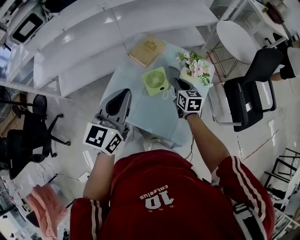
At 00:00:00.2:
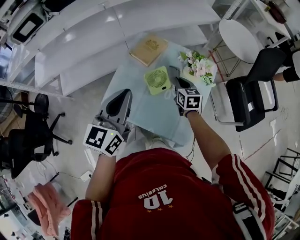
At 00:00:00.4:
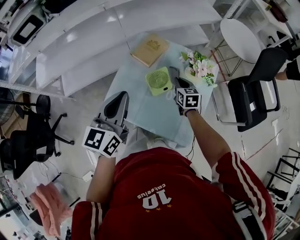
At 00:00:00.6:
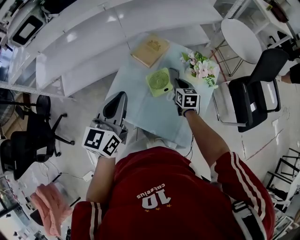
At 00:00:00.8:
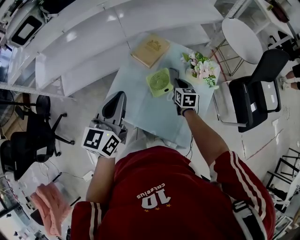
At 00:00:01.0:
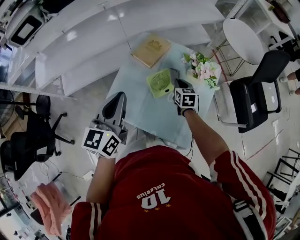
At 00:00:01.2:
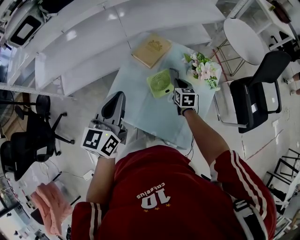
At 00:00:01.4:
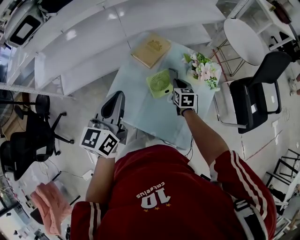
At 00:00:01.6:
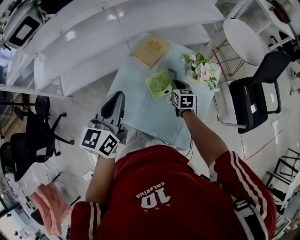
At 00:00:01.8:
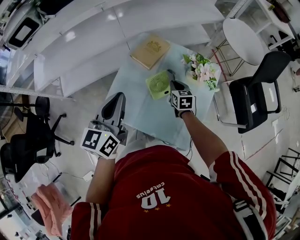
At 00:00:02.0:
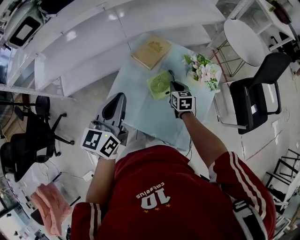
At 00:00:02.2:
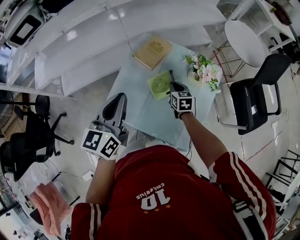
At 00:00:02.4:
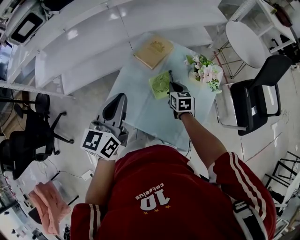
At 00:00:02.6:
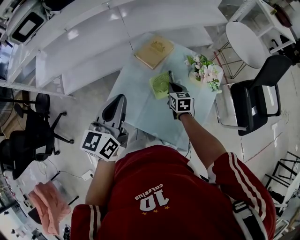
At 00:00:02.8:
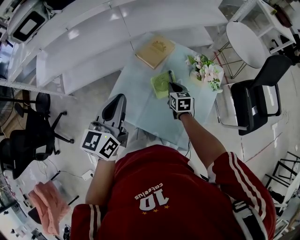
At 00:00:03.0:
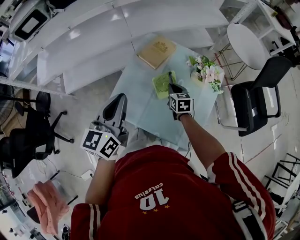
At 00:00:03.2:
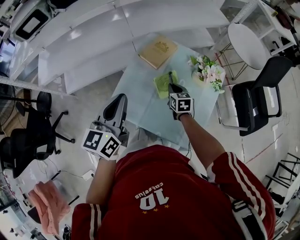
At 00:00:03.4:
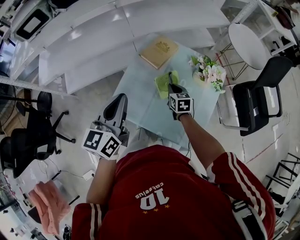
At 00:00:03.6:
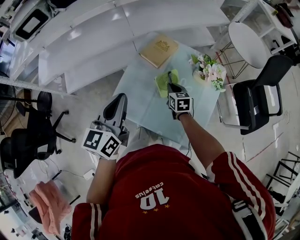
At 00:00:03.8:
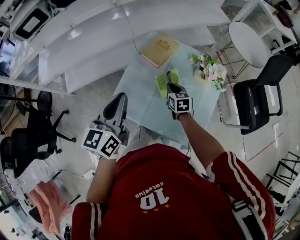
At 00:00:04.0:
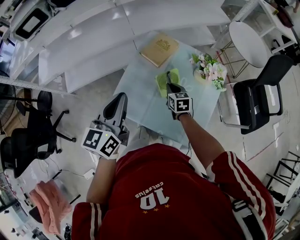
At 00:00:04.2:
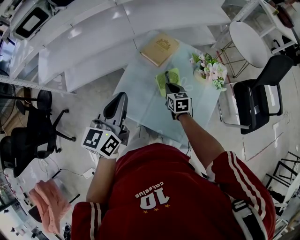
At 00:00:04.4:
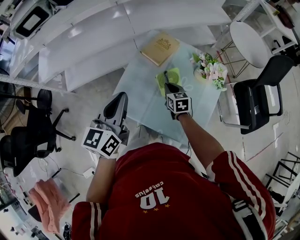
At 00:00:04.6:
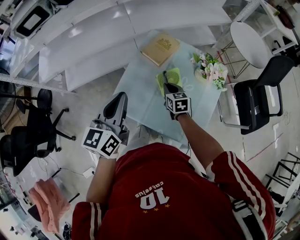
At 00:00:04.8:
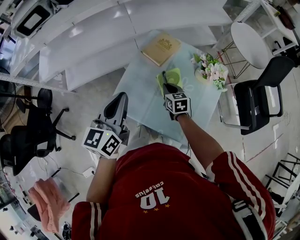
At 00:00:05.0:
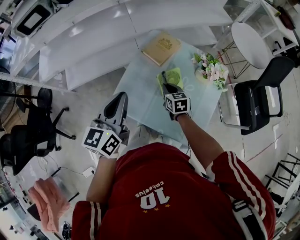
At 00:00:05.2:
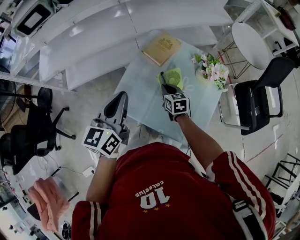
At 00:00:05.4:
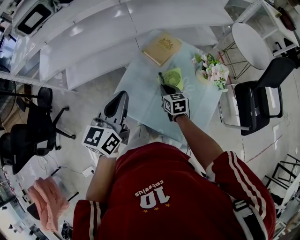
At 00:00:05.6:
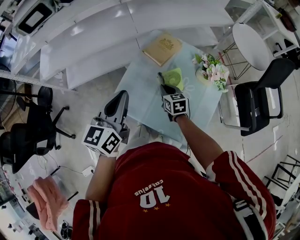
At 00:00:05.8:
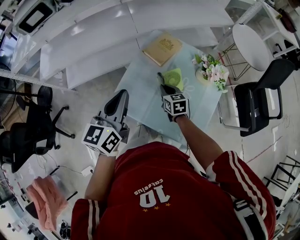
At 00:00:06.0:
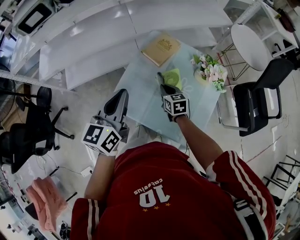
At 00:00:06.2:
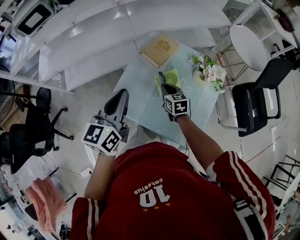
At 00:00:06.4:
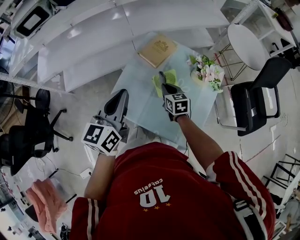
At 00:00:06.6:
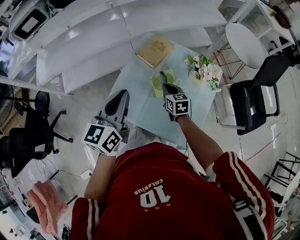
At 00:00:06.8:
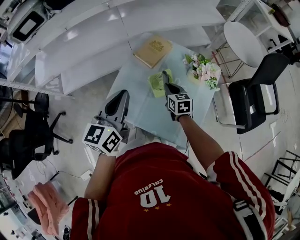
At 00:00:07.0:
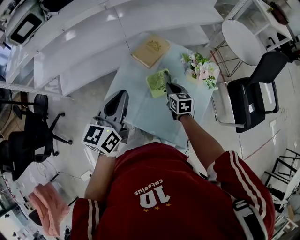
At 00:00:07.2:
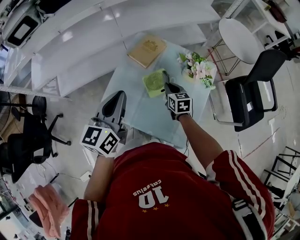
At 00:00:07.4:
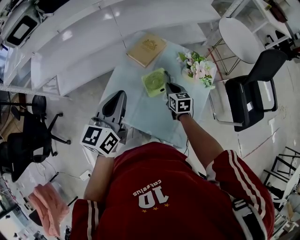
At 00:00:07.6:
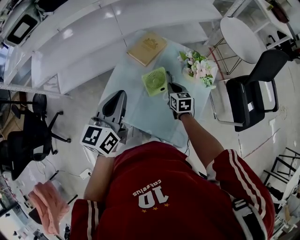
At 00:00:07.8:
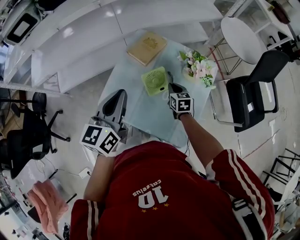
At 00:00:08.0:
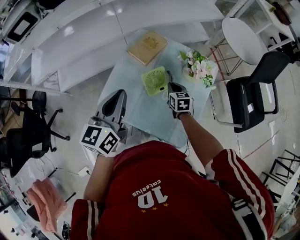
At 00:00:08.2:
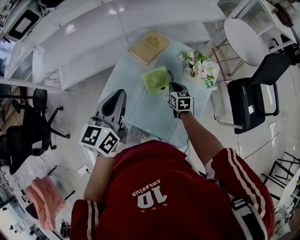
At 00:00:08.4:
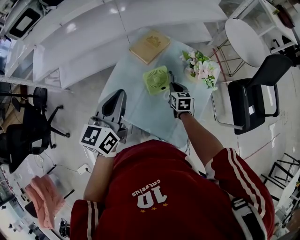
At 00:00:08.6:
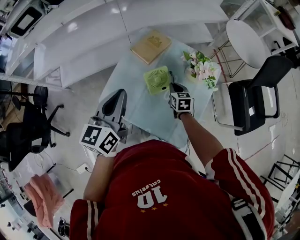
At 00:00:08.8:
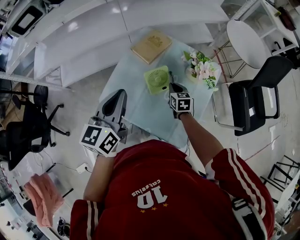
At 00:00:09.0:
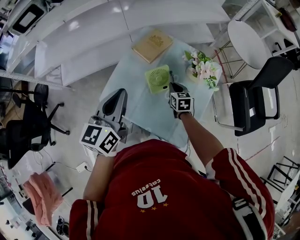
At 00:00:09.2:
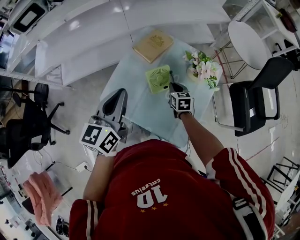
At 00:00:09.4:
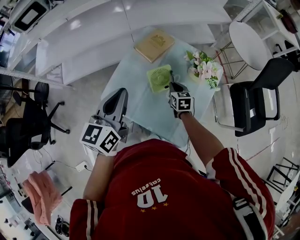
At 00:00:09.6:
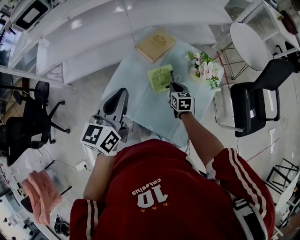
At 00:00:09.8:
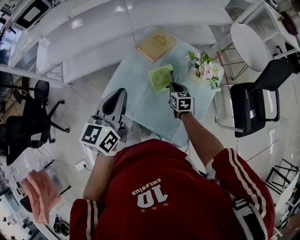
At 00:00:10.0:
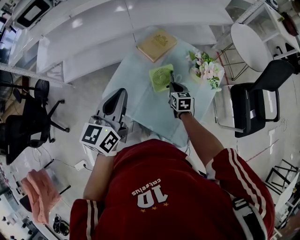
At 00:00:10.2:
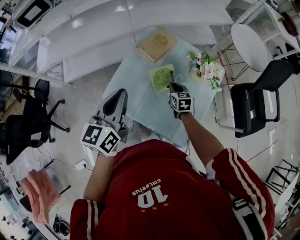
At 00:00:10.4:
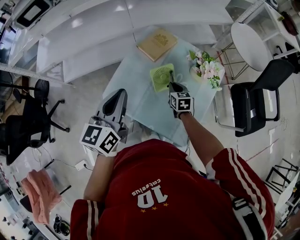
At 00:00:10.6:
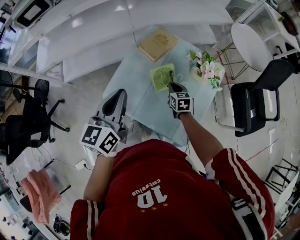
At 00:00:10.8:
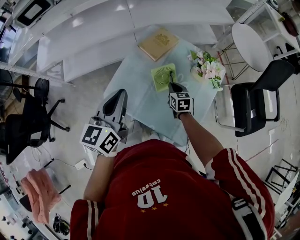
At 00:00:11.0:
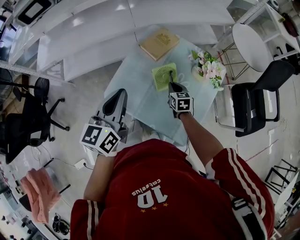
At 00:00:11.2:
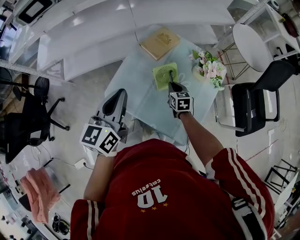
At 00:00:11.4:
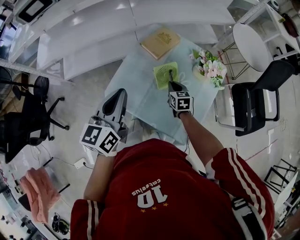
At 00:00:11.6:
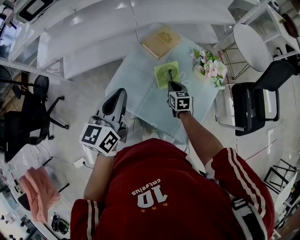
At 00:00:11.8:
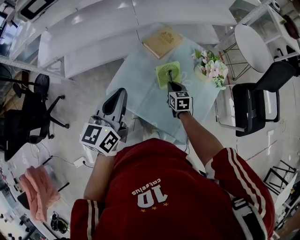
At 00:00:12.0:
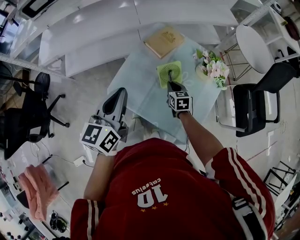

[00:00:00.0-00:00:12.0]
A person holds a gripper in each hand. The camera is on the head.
00:00:00.0 to 00:00:01.6: The left gripper ends up approximately 5 cm from where it was; the right gripper shifts some 10 cm downward.
00:00:01.6 to 00:00:03.0: The right gripper shifts some 5 cm to the left.
00:00:03.0 to 00:00:04.4: The grippers stay close to where they were, moving slightly.
00:00:04.4 to 00:00:06.0: The grippers move only a little.
00:00:06.0 to 00:00:07.6: The left gripper shifts some 5 cm to the right; the right gripper moves to the right, roughly 10 cm.
00:00:07.6 to 00:00:10.4: The grippers make only small movements.
00:00:10.4 to 00:00:12.0: The grippers move only a little.

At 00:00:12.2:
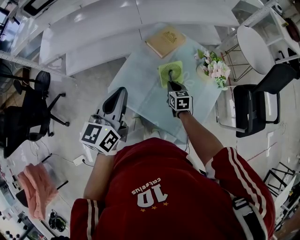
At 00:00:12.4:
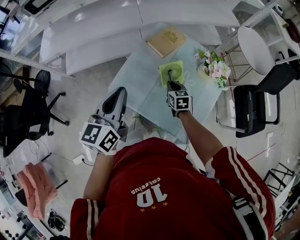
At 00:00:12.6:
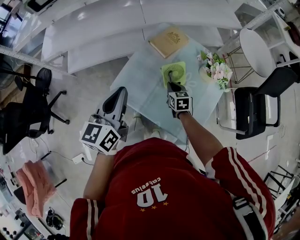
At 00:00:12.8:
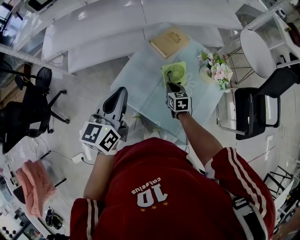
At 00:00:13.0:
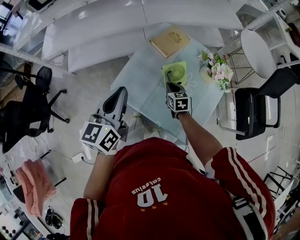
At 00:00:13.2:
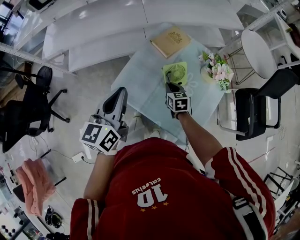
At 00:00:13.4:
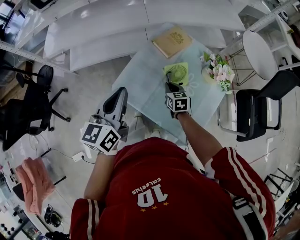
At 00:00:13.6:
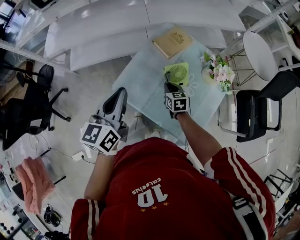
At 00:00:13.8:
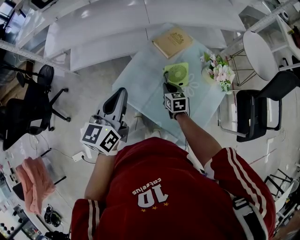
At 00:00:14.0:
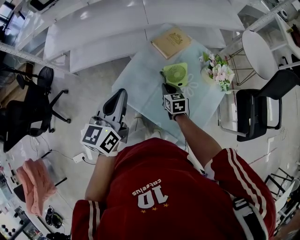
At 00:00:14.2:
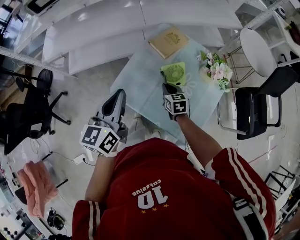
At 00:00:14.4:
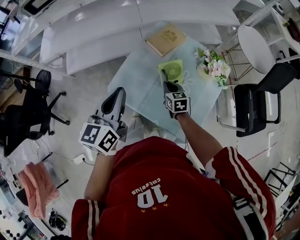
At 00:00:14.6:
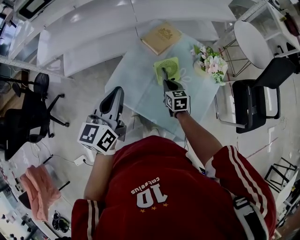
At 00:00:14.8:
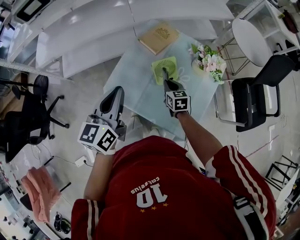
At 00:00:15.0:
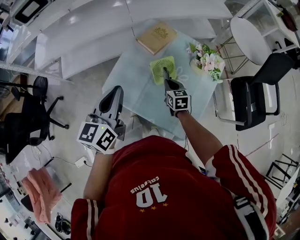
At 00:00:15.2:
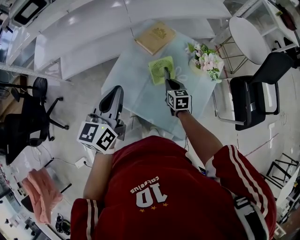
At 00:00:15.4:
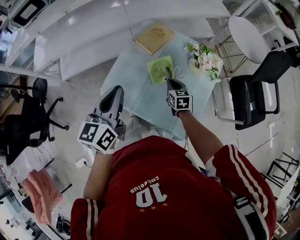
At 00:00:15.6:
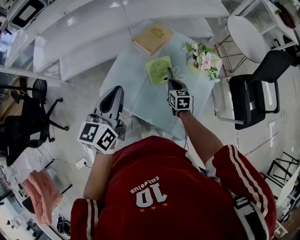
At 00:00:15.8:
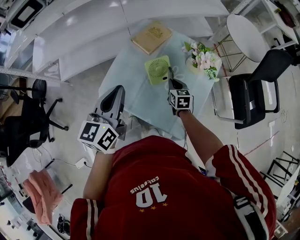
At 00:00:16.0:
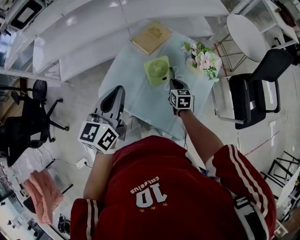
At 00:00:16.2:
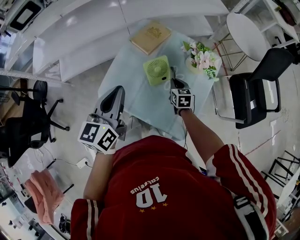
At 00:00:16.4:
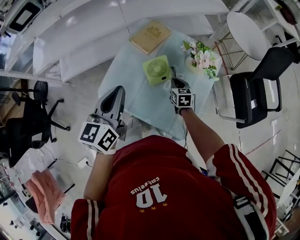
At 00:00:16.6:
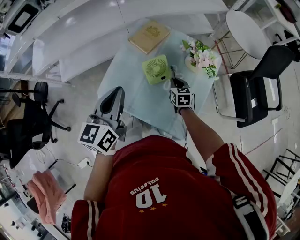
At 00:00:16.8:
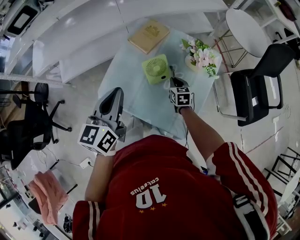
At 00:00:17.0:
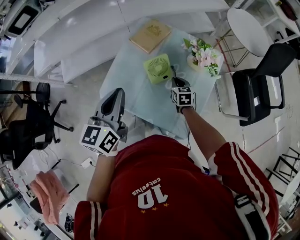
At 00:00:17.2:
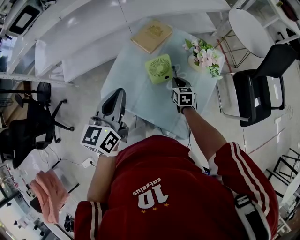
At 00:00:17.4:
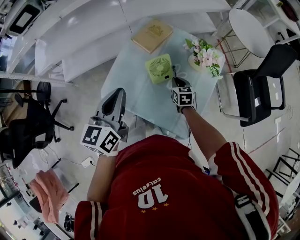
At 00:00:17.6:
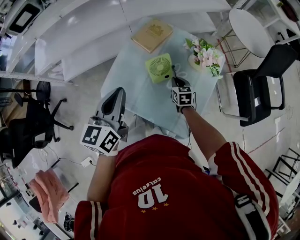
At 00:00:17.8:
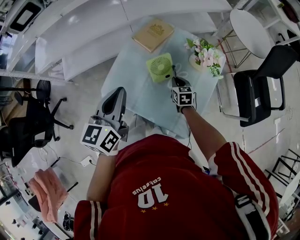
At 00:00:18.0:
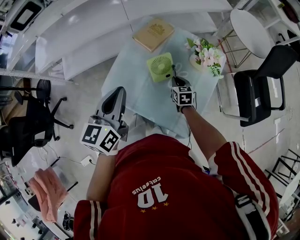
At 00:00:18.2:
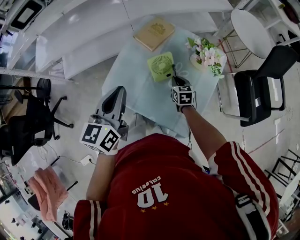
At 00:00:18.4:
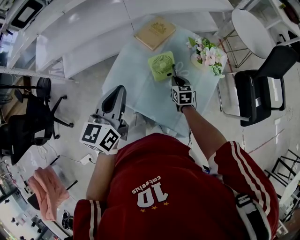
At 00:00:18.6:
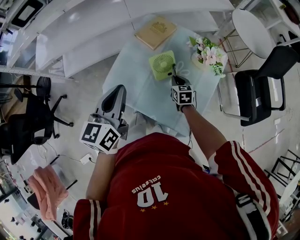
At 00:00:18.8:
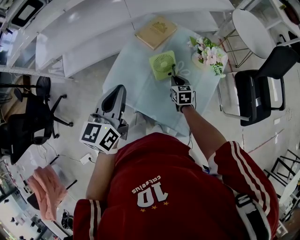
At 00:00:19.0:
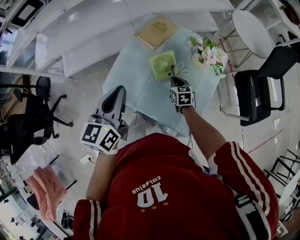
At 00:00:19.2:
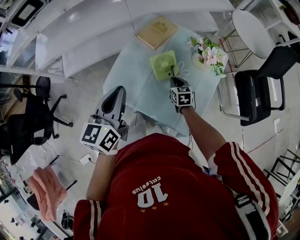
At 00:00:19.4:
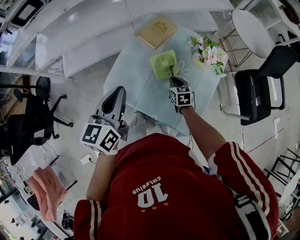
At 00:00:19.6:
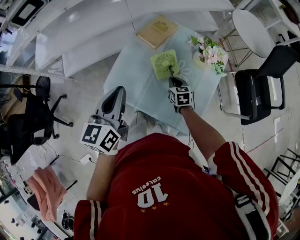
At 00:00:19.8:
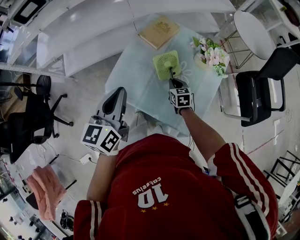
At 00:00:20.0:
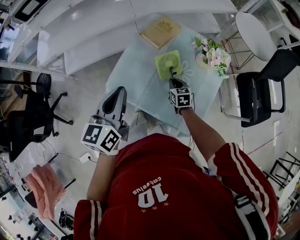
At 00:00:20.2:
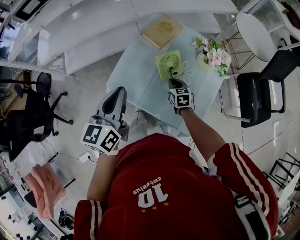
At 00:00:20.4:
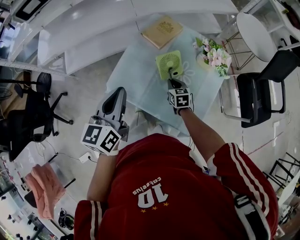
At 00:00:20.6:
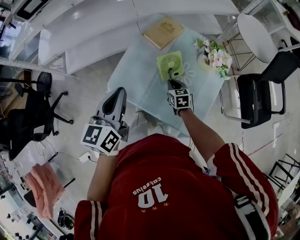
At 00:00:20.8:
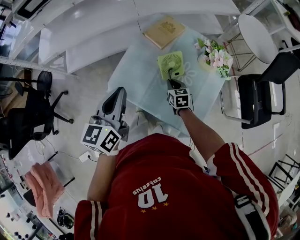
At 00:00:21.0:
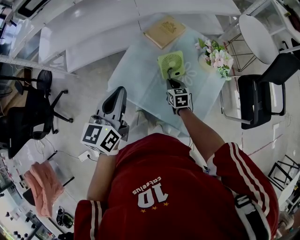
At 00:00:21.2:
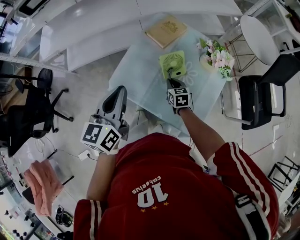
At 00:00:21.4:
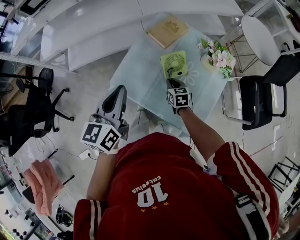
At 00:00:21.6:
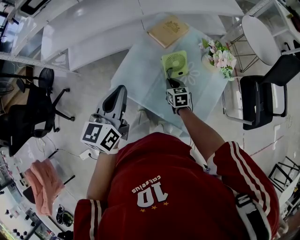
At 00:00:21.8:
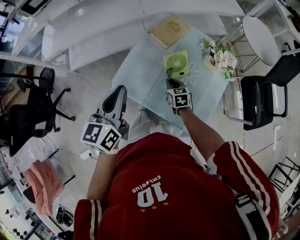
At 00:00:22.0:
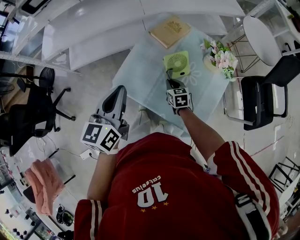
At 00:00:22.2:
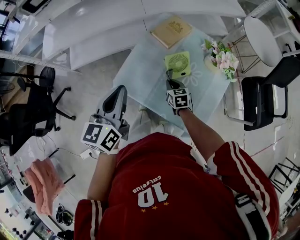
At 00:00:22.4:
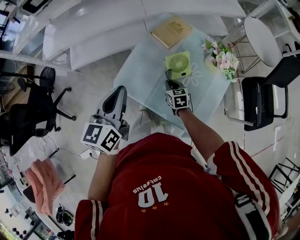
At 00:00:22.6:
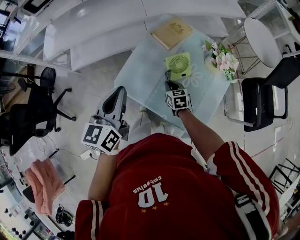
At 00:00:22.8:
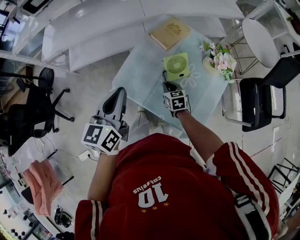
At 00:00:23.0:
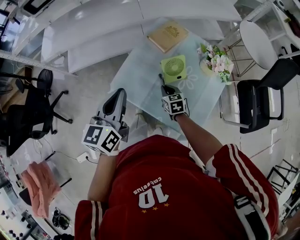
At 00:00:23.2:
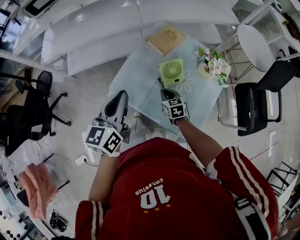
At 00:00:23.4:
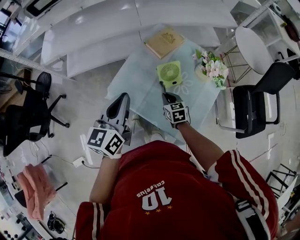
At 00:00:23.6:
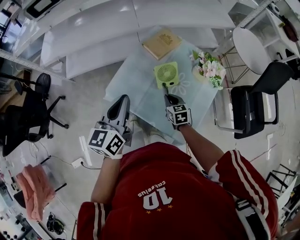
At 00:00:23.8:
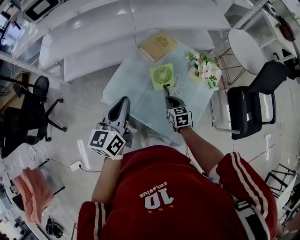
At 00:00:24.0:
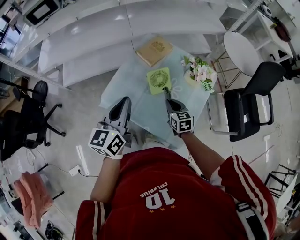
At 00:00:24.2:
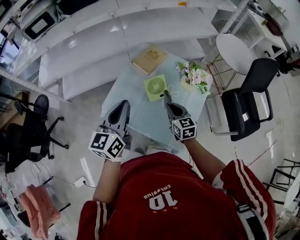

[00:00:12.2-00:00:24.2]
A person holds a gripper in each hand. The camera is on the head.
00:00:12.2 to 00:00:13.8: The right gripper heads to the left, covering approximately 5 cm.
00:00:13.8 to 00:00:15.2: The right gripper moves to the right, approximately 10 cm. The left gripper shifts some 5 cm to the right.
00:00:15.2 to 00:00:16.6: The right gripper travels to the right by approximately 5 cm.
00:00:16.6 to 00:00:18.2: The grippers make only small movements.
00:00:18.2 to 00:00:19.8: There are only small adjustments of the grippers.
00:00:19.8 to 00:00:21.2: The grippers stay close to where they were, moving slightly.
00:00:21.2 to 00:00:22.6: The grippers make only small movements.
00:00:22.6 to 00:00:24.2: The right gripper travels upward and to the right by about 20 cm. The left gripper travels to the right by approximately 10 cm.
